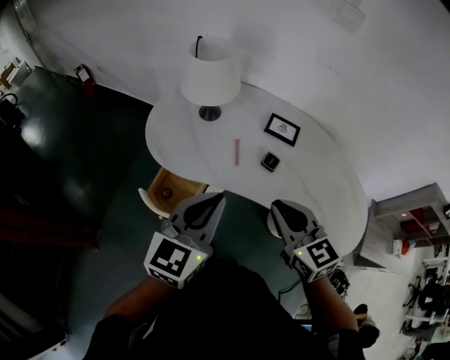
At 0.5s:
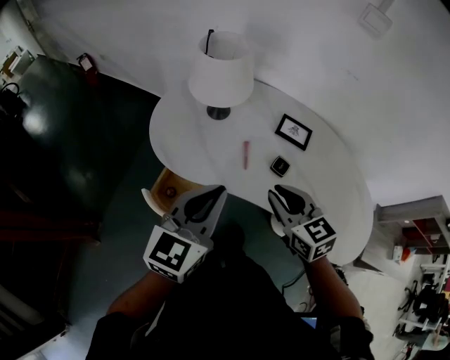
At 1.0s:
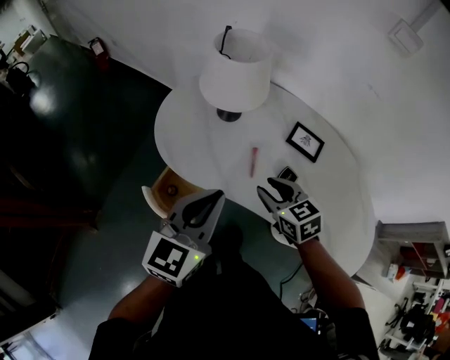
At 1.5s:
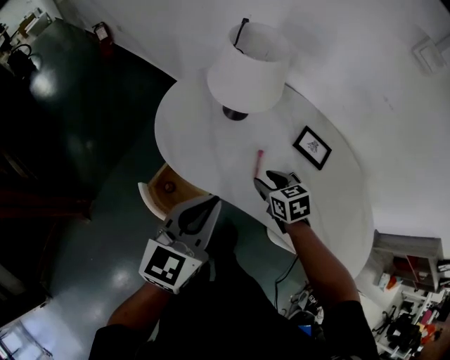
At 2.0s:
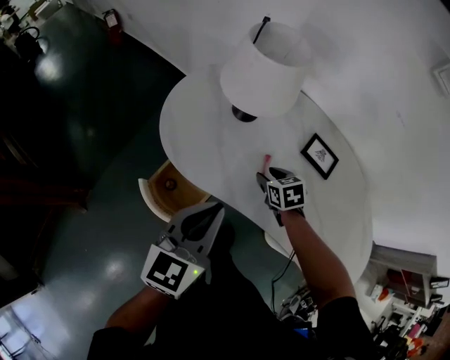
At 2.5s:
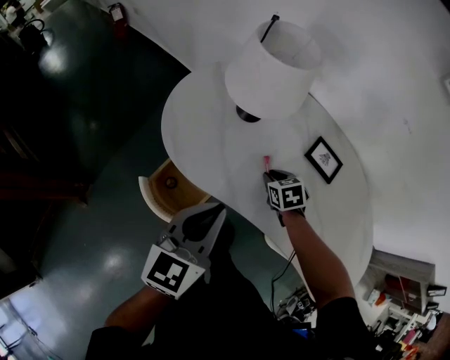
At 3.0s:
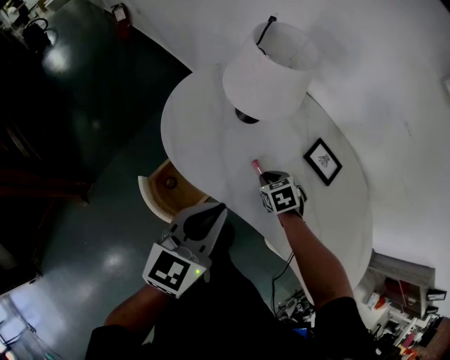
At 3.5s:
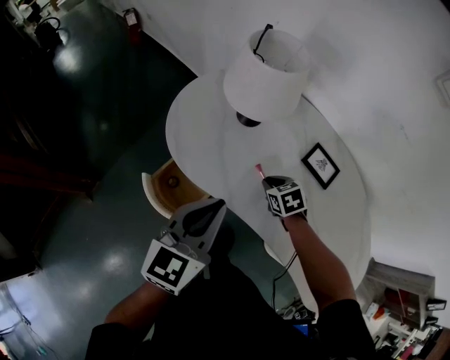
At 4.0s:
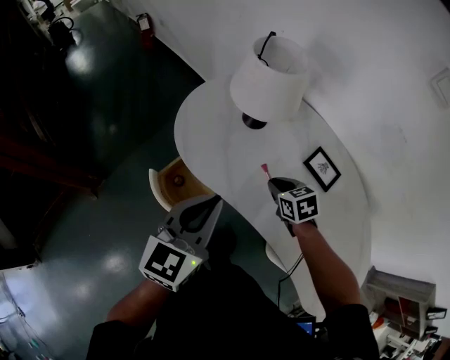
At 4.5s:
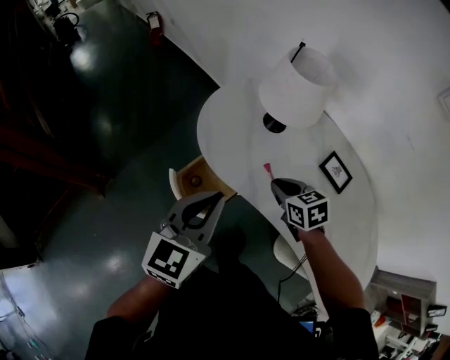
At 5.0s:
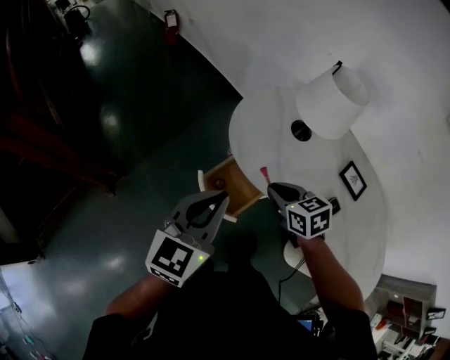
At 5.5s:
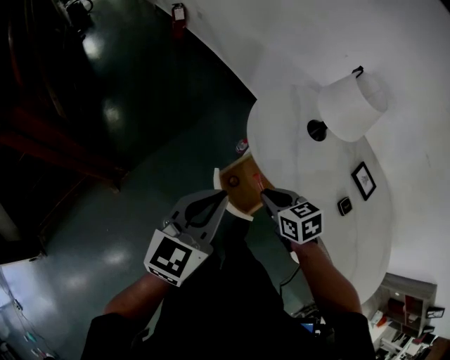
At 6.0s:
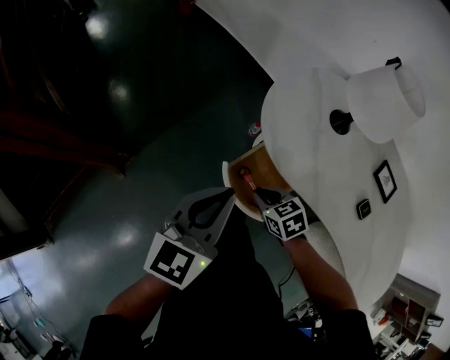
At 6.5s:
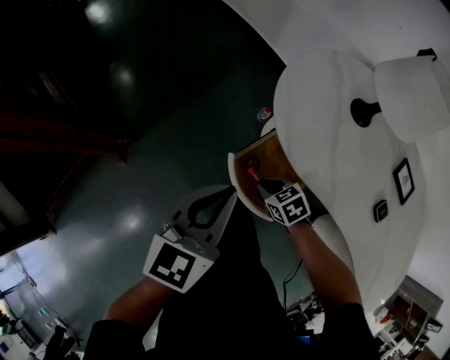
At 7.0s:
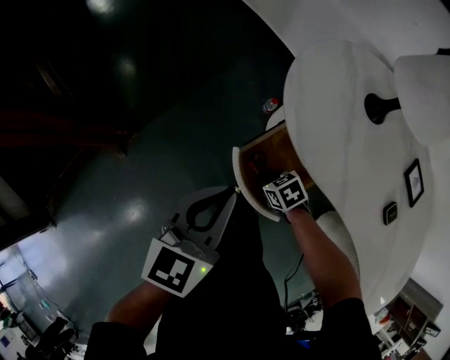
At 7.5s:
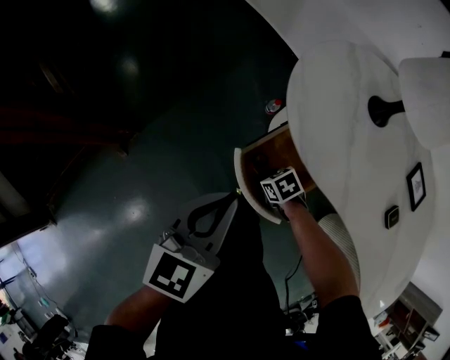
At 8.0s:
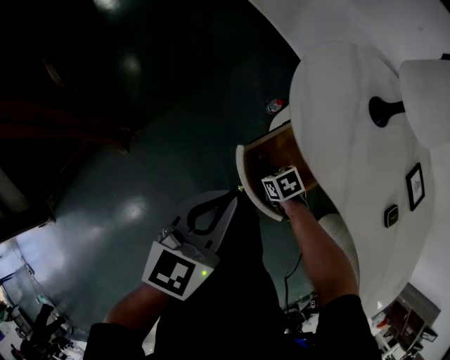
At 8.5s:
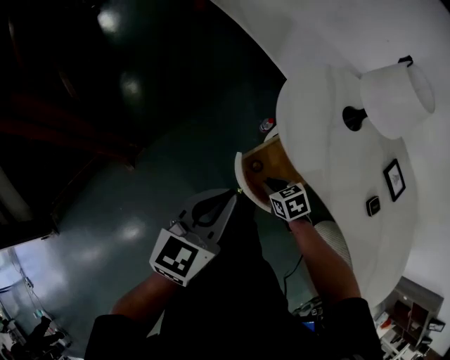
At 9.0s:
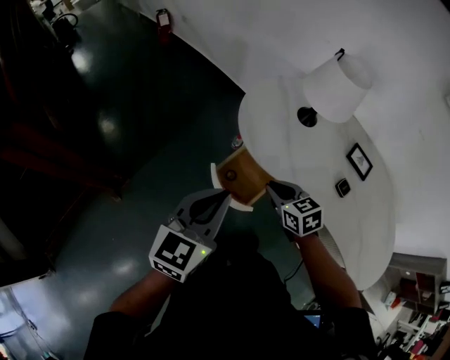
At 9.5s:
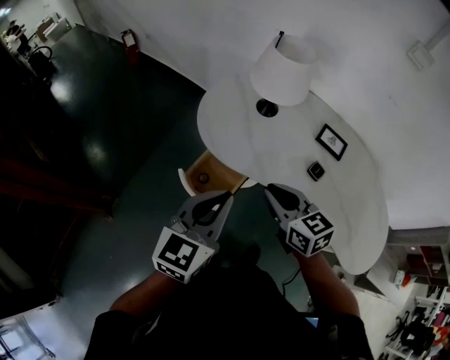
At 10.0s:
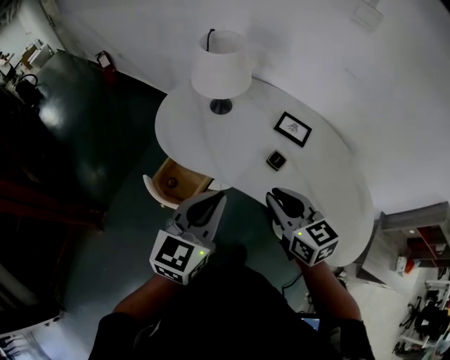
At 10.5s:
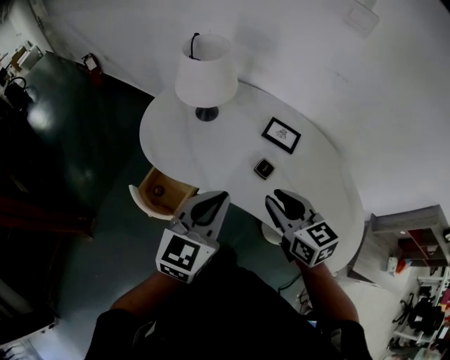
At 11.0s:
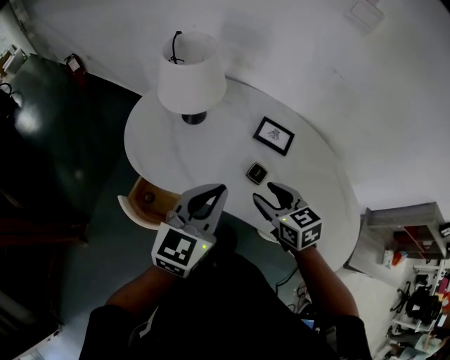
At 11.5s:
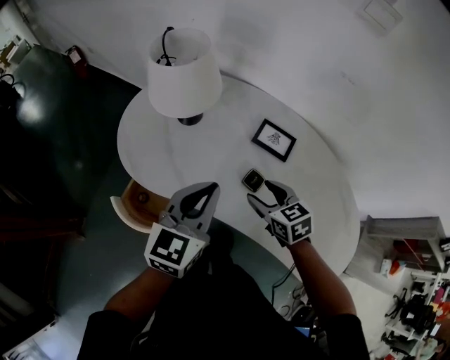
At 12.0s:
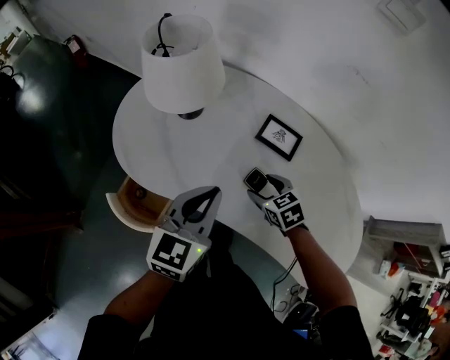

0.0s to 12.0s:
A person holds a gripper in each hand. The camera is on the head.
0.0s to 2.0s: The right gripper travels downward and forward by roughly 35 cm, angles its fingers downward, by about 40 degrees, and opens. Meanwhile the left gripper is displaced forward and downward by roughly 15 cm.
2.0s to 4.0s: The right gripper goes approximately 5 cm upward, and closes.
4.0s to 6.0s: Both grippers move to the left, about 30 cm.
6.0s to 8.0s: The left gripper goes roughly 10 cm downward; the right gripper heads downward, covering about 20 cm, and turns by roughly 20 degrees.
8.0s to 10.0s: The left gripper shifts by some 35 cm, and swivels approximately 20 degrees. The right gripper goes roughly 40 cm upward, and tips its fingers upward by about 40 degrees.
10.0s to 12.0s: The right gripper is displaced downward, forward and to the right by roughly 30 cm, angles its fingers downward, by approximately 30 degrees, and opens its fingers, while the left gripper heads forward, to the right and downward, covering about 20 cm.

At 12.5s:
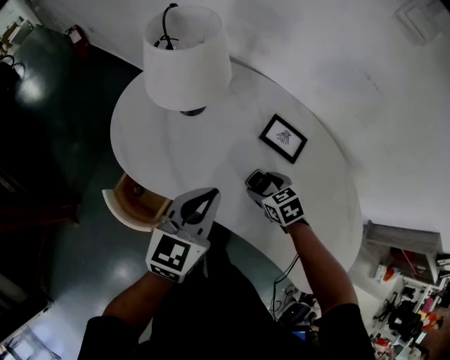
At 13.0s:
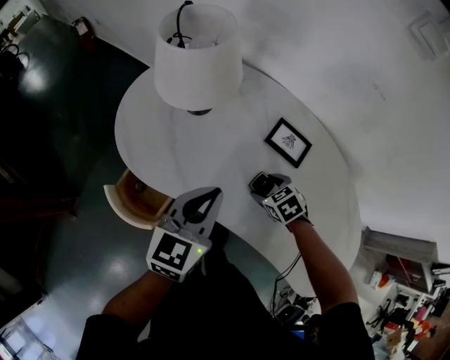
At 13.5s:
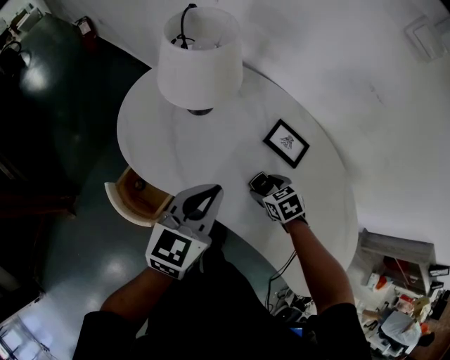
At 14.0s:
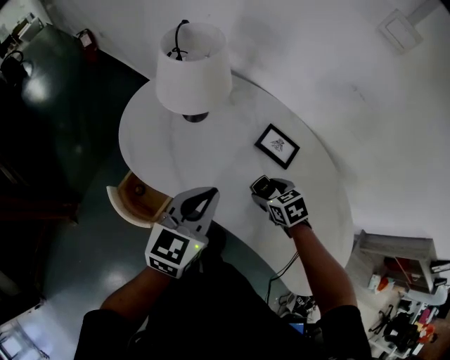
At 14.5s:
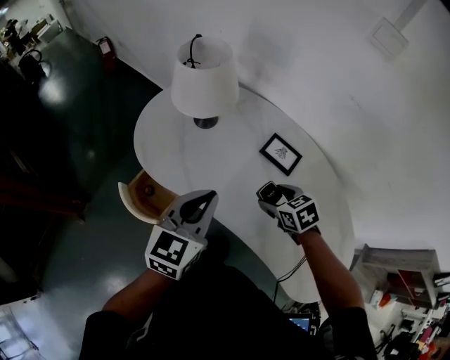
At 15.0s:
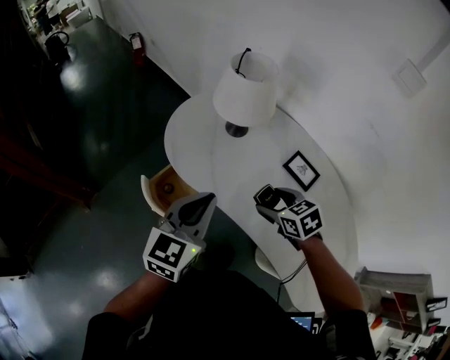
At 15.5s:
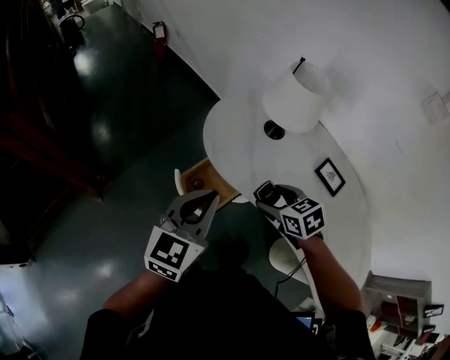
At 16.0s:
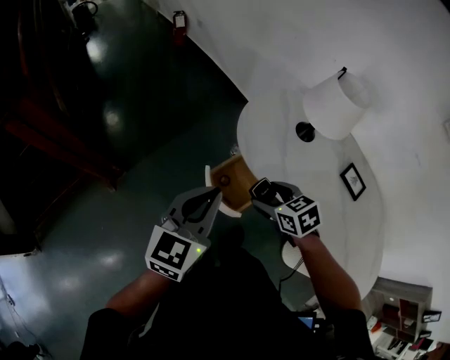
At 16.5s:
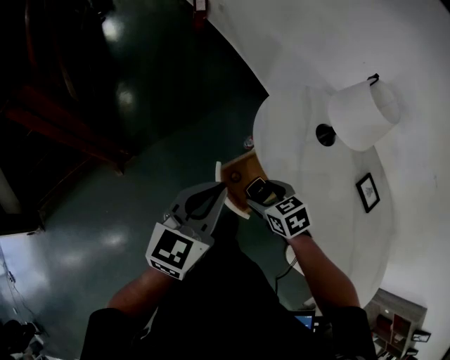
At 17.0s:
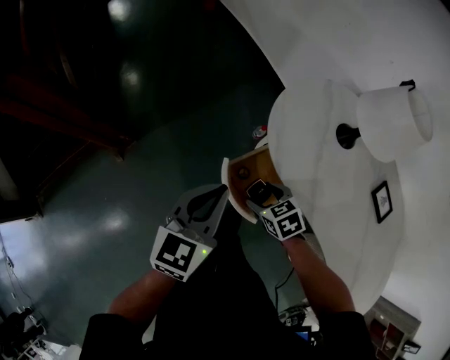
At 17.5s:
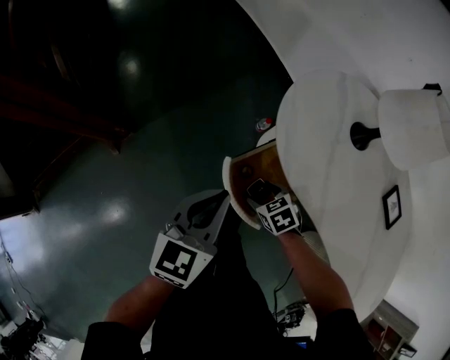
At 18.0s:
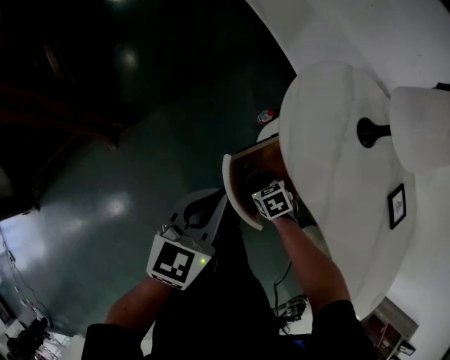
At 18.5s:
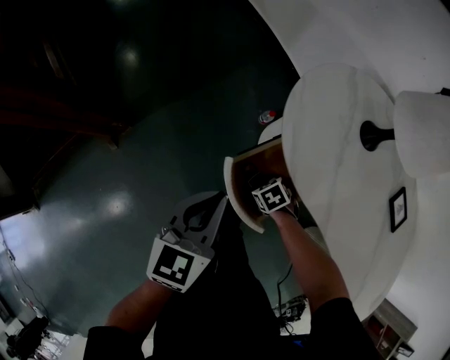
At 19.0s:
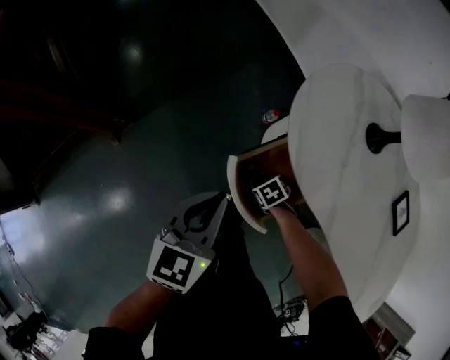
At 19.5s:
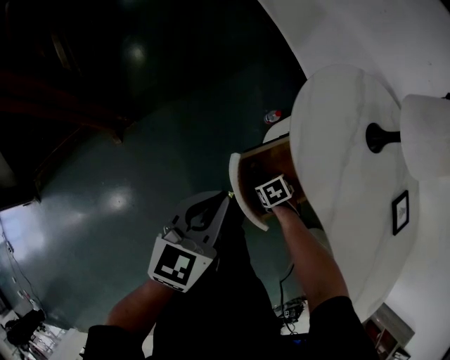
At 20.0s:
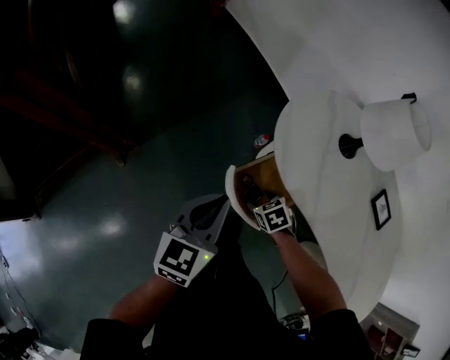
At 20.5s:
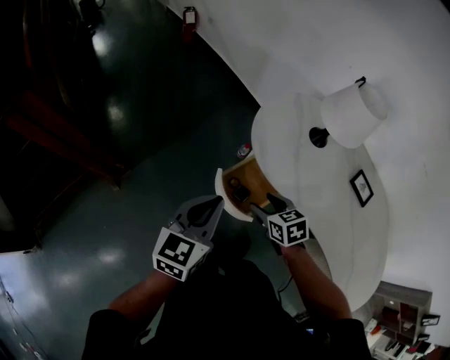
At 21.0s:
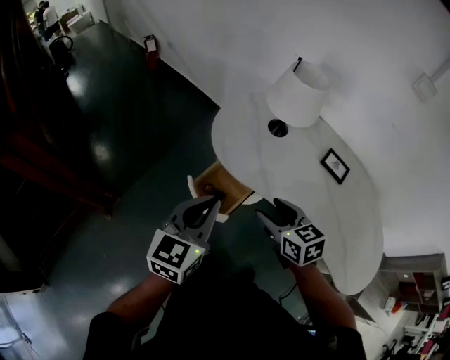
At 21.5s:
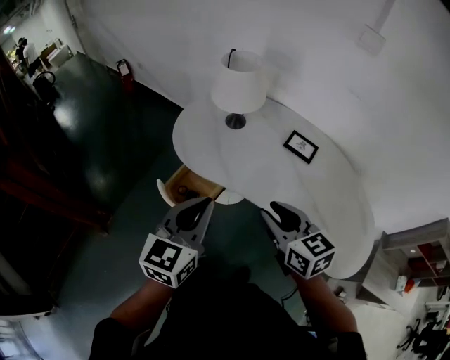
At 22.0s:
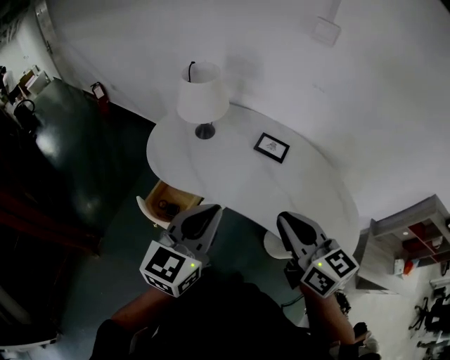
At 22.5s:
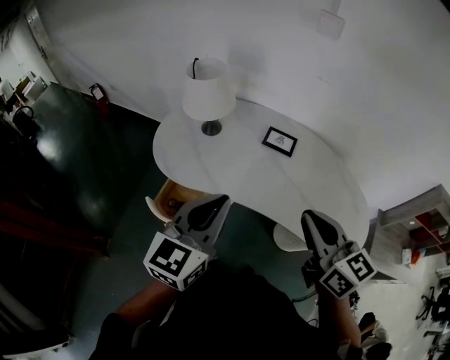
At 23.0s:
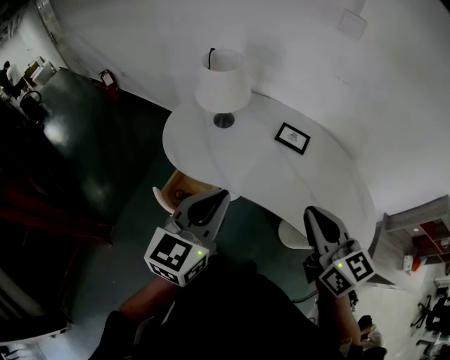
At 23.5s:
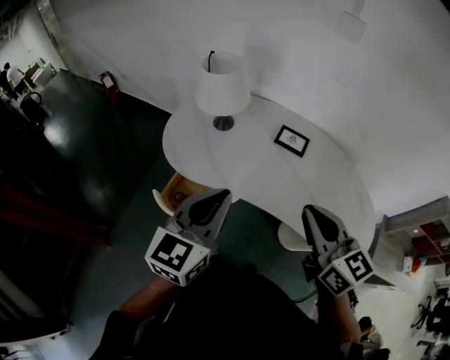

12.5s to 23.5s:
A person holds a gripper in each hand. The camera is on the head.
12.5s to 14.5s: The two grippers go about 10 cm upward.
14.5s to 16.0s: Both grippers travel together to the left, about 35 cm.
16.0s to 18.0s: The right gripper heads downward, covering roughly 30 cm, and changes its angle by approximately 20 degrees. The left gripper heads downward and forward, covering about 20 cm.
18.0s to 20.0s: Both grippers move upward, roughly 5 cm.
20.0s to 21.5s: The right gripper goes some 35 cm upward, angles its fingers upward, by some 50 degrees, and closes; the left gripper ends up some 30 cm from where it was, and rotates approximately 20 degrees.
21.5s to 23.5s: The left gripper is displaced to the right by some 5 cm, while the right gripper shifts approximately 15 cm upward and to the right, and closes up.

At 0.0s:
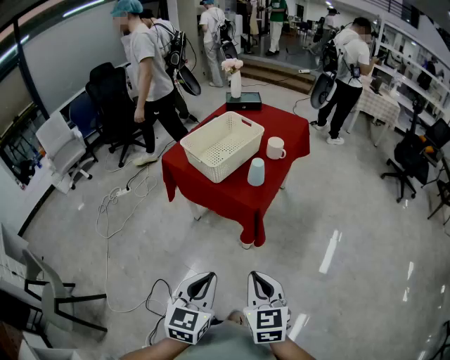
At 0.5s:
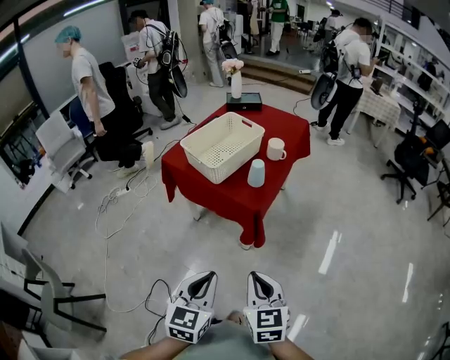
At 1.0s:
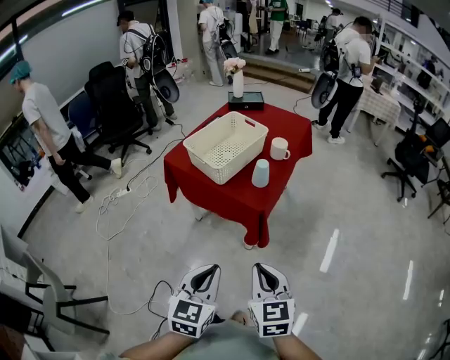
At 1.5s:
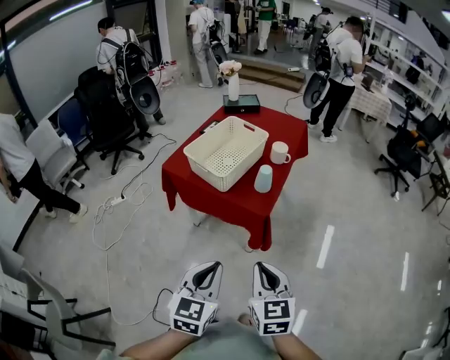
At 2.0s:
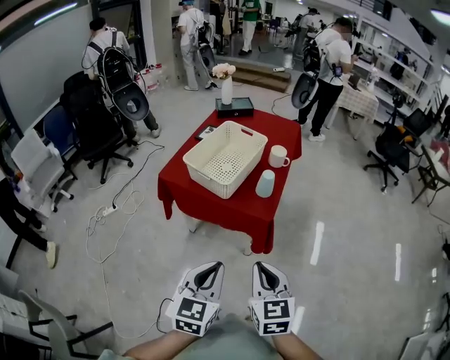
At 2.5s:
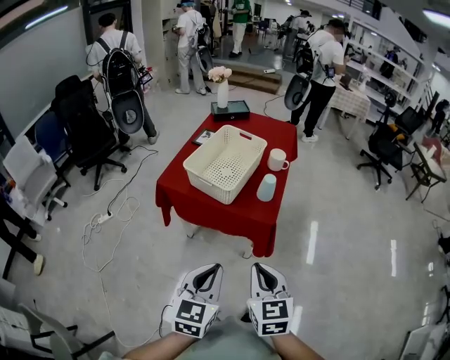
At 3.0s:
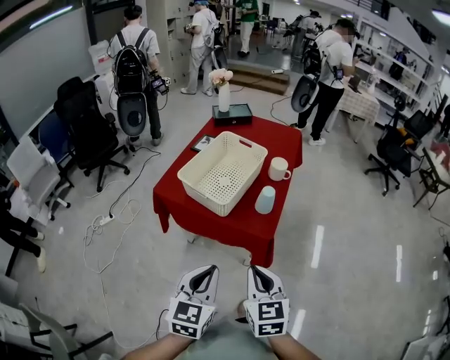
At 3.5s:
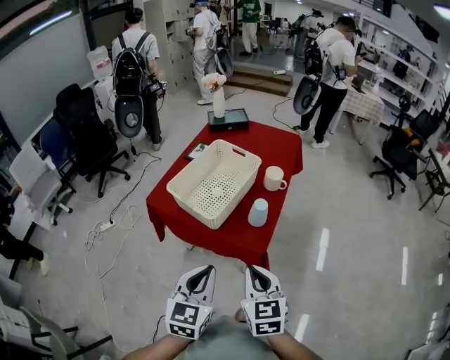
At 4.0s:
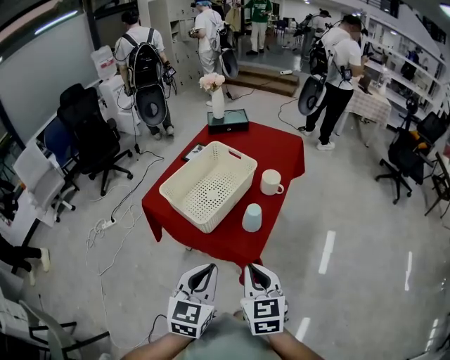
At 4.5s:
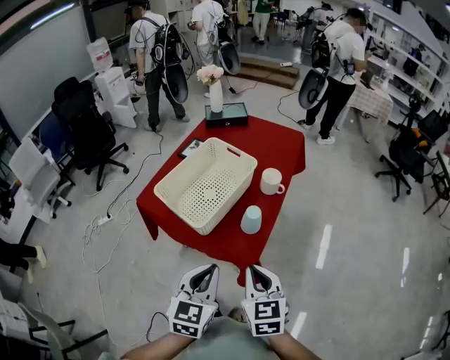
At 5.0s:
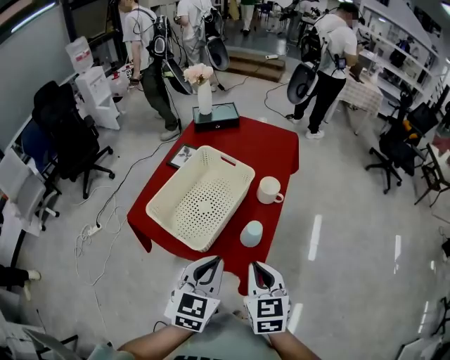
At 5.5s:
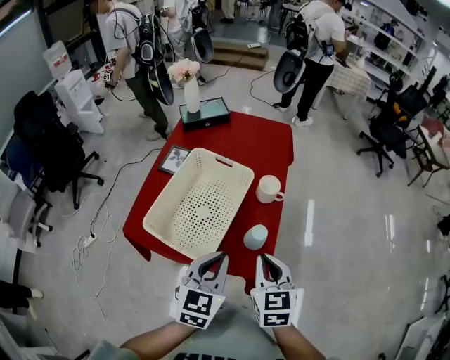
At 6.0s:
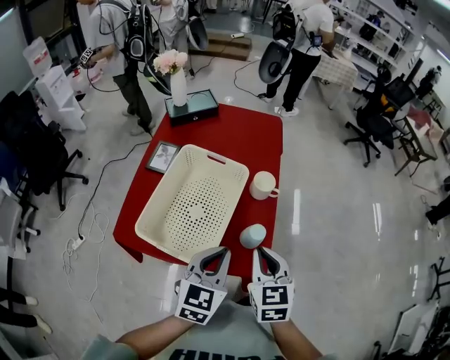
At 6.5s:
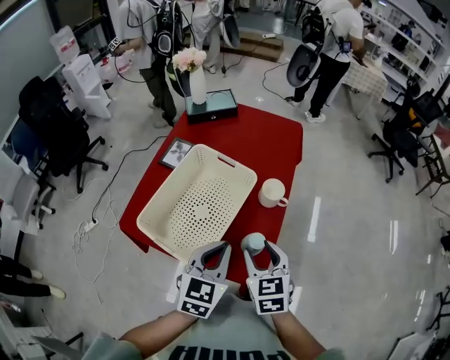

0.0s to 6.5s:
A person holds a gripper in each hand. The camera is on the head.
0.0s to 2.0s: Both grippers travel together to the left and forward, approximately 15 cm.
2.0s to 4.5s: Both grippers travel together forward, approximately 20 cm.
4.5s to 6.5s: Both grippers move forward, approximately 20 cm. The right gripper opens up.
